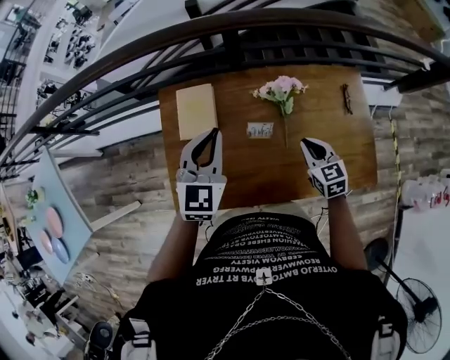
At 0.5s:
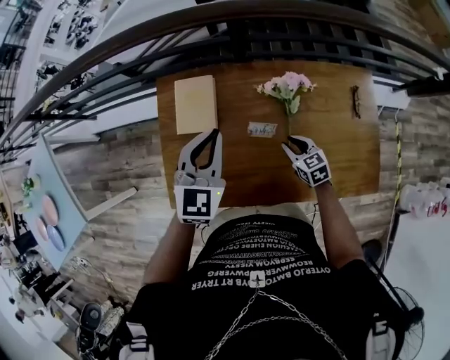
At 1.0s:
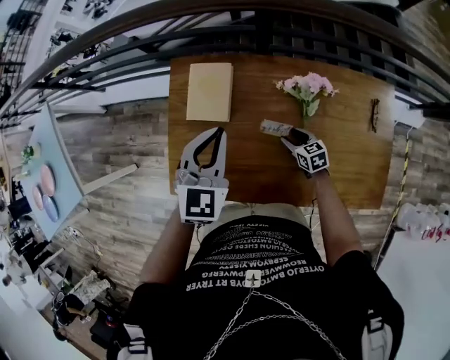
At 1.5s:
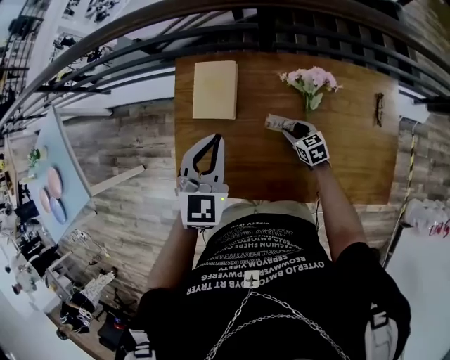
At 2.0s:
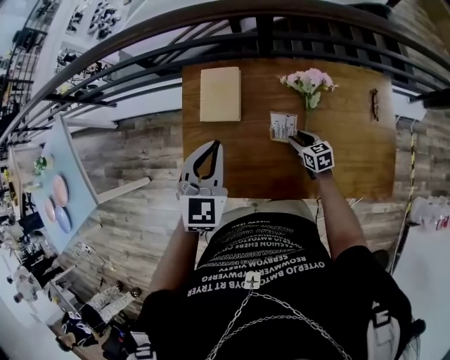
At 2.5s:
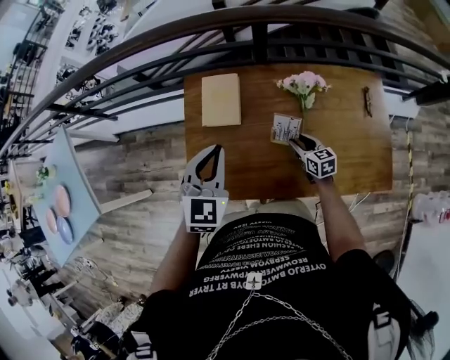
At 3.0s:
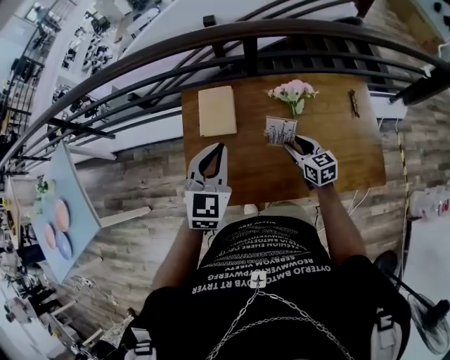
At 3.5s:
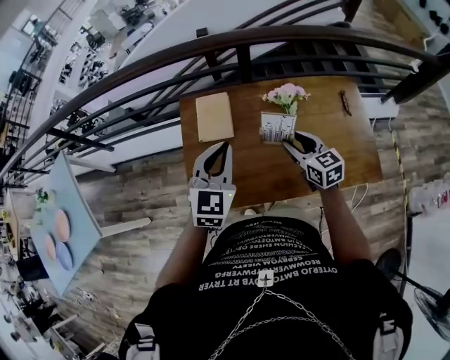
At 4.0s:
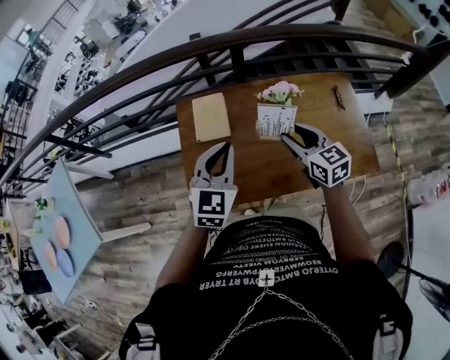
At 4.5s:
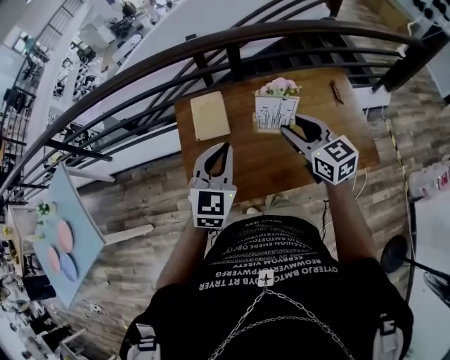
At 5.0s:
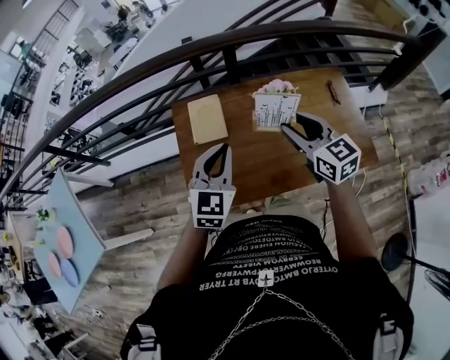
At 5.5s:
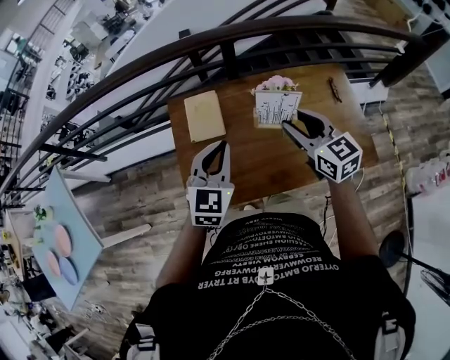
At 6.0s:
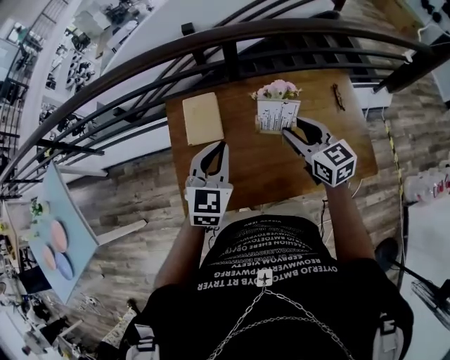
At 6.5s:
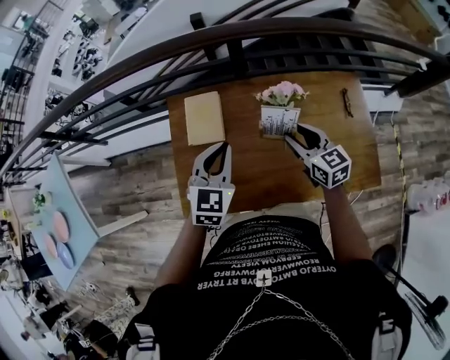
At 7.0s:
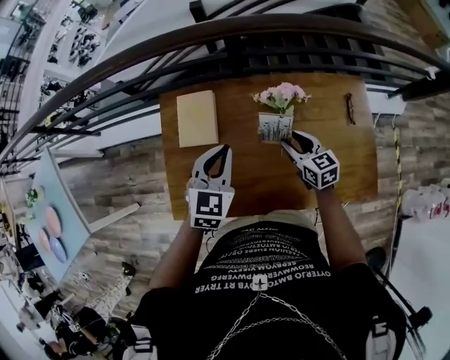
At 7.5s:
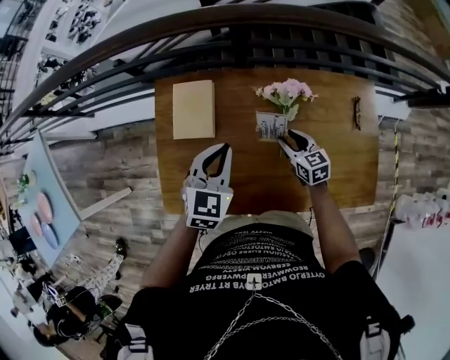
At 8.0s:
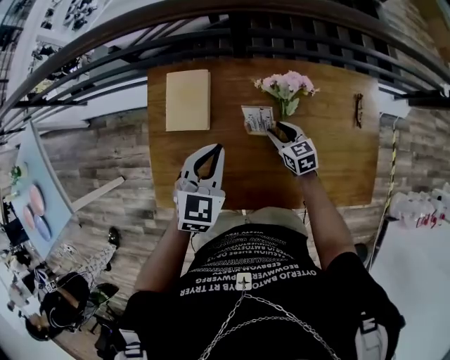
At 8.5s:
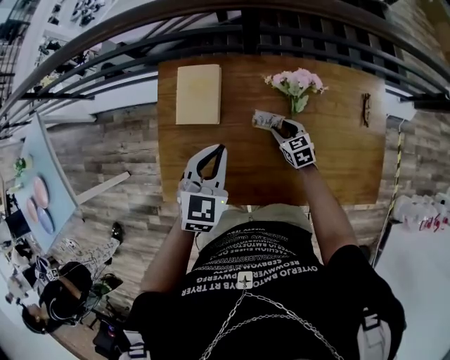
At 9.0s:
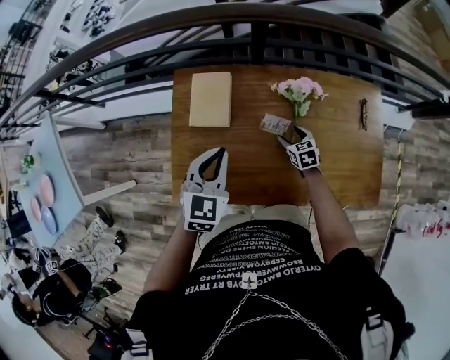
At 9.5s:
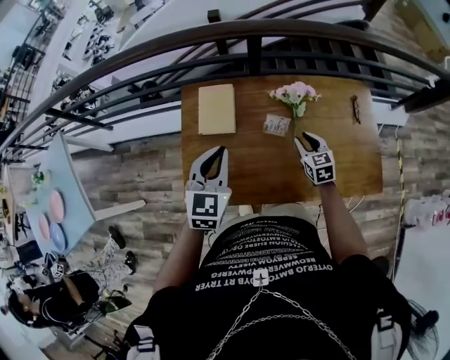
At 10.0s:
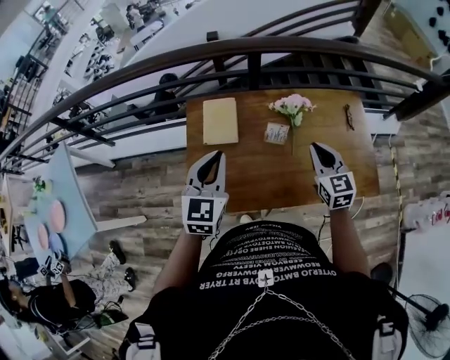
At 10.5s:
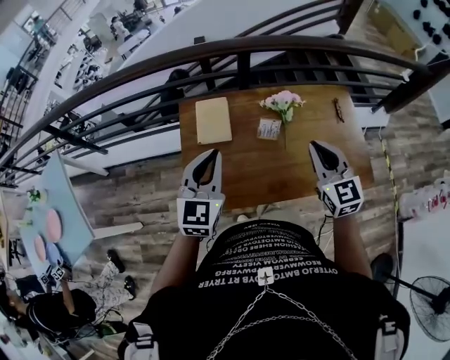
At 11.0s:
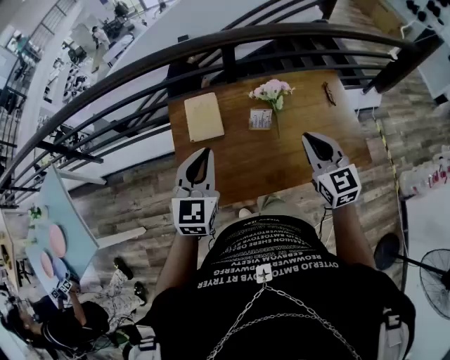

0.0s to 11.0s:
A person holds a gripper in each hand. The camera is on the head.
0.0s to 2.0s: The right gripper travels downward by roughly 20 cm, rotates roughly 20 degrees, and opens up, while the left gripper is displaced to the left by some 5 cm.
2.0s to 3.5s: The left gripper shifts roughly 10 cm upward and backward. The right gripper goes approximately 25 cm upward, and rotates some 20 degrees.
3.5s to 5.5s: The right gripper travels upward by some 10 cm.
5.5s to 7.5s: The left gripper is displaced forward, downward and to the right by about 15 cm. The right gripper is displaced downward by approximately 30 cm, and rotates about 20 degrees.
7.5s to 9.0s: The left gripper goes some 5 cm to the left. The right gripper moves downward, approximately 10 cm.
9.0s to 11.0s: The right gripper is displaced upward and backward by roughly 40 cm, angles its fingers upward, by about 30 degrees, and closes its fingers. Meanwhile the left gripper shifts about 15 cm upward, backward and to the left.

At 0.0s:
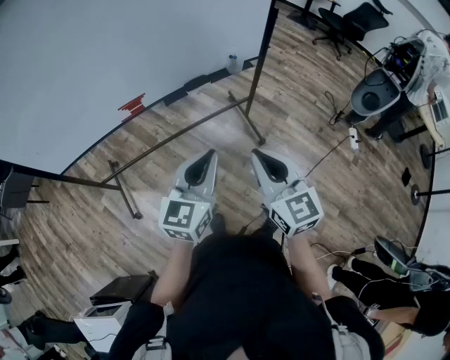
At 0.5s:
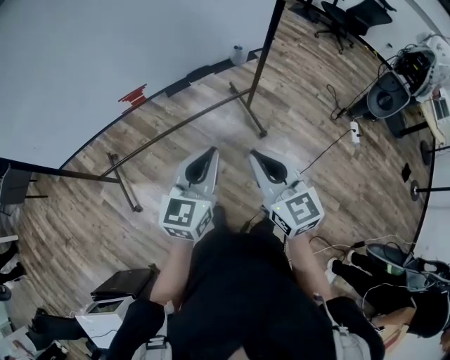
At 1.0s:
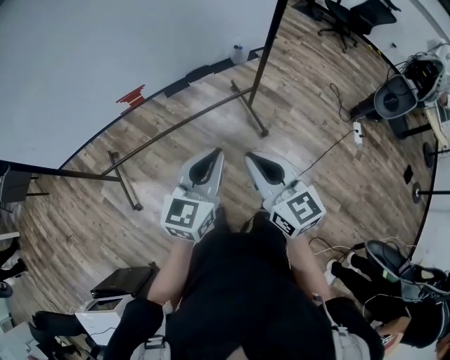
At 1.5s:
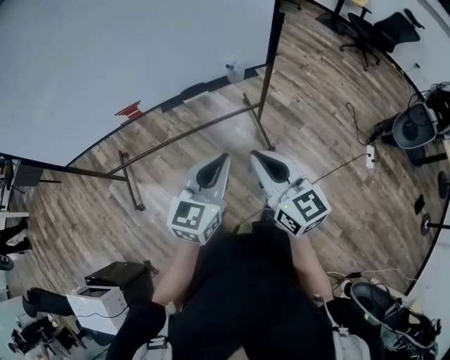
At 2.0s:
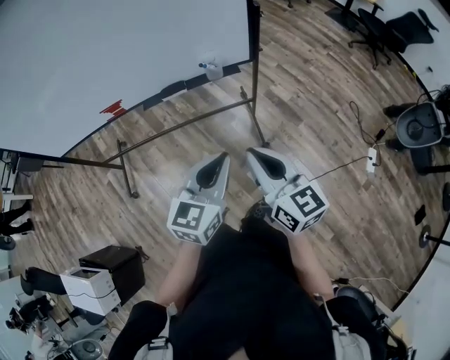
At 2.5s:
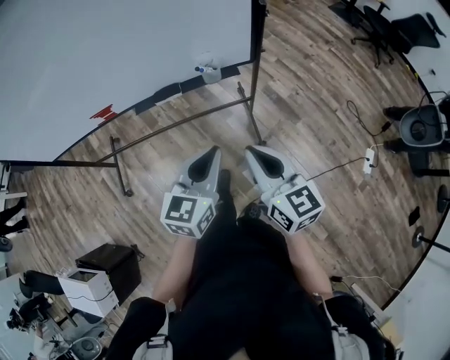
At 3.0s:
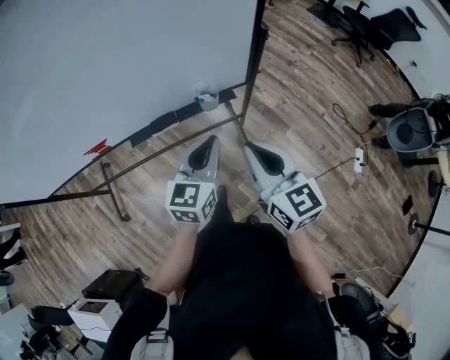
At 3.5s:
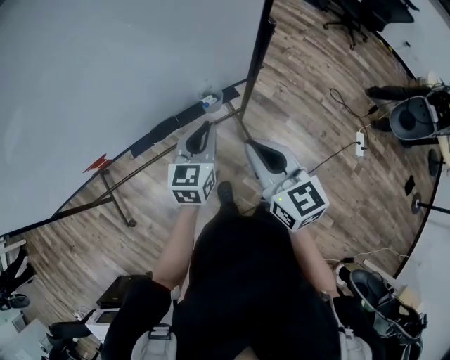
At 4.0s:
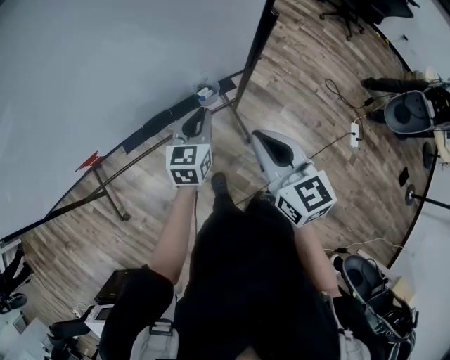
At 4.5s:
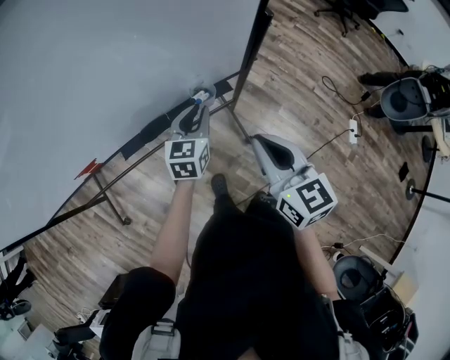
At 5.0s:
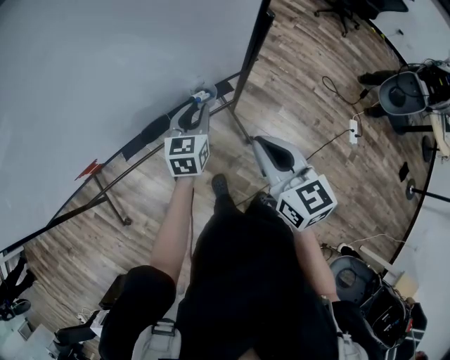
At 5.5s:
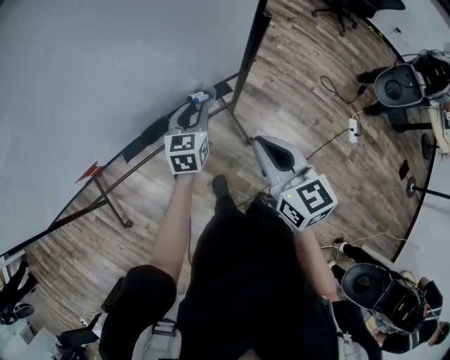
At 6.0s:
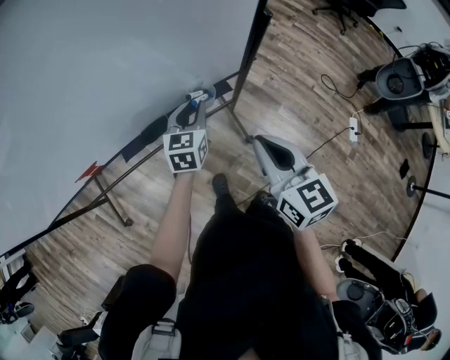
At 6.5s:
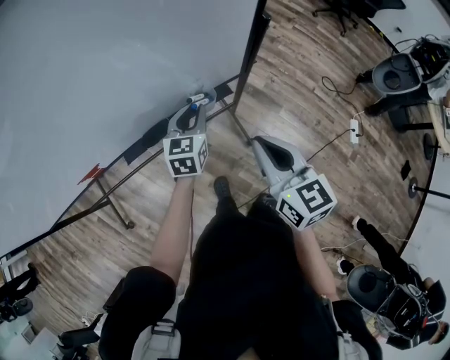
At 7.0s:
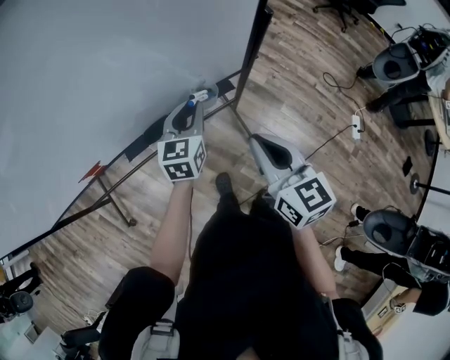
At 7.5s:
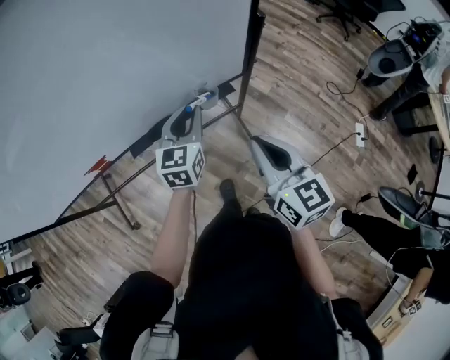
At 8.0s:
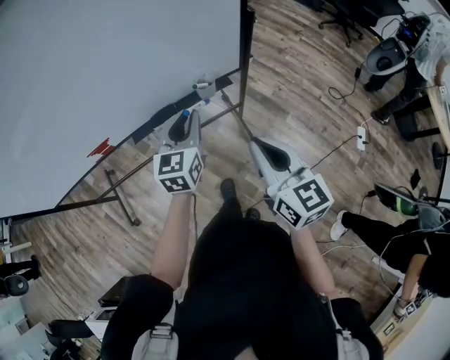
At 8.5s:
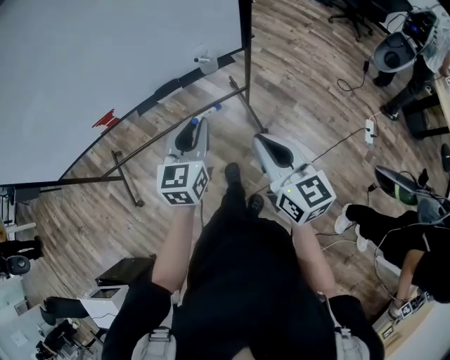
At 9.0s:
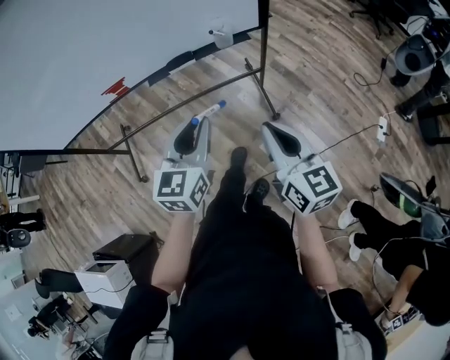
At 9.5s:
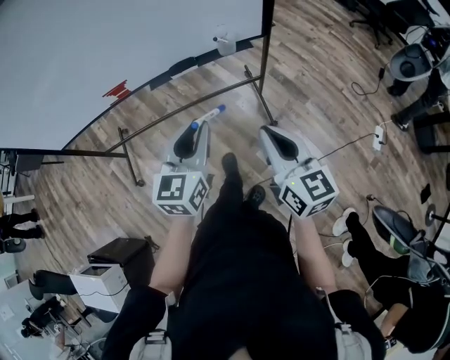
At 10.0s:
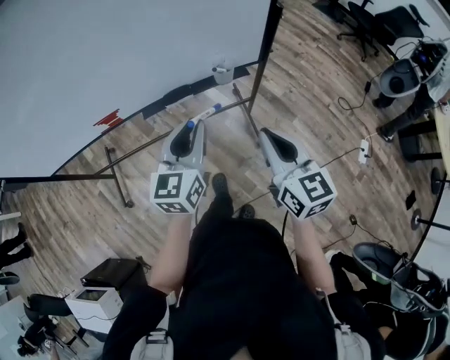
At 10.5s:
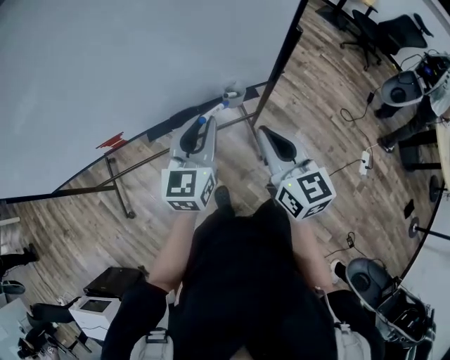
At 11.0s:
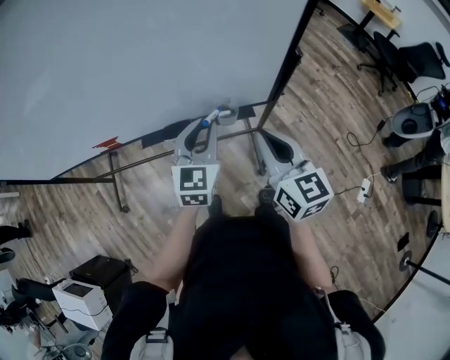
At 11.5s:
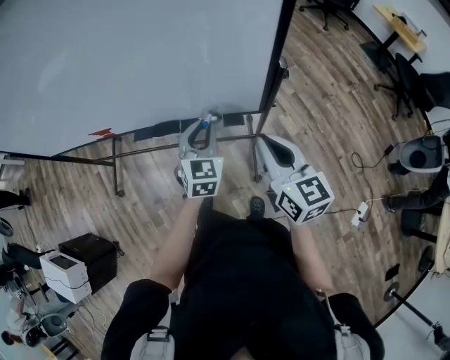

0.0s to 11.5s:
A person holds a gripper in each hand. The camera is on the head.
0.0s to 2.0s: The left gripper travels to the right by about 25 cm. The right gripper shifts about 25 cm to the right and forward, and swivels some 30 degrees.
2.0s to 4.0s: The left gripper shifts about 35 cm forward and downward. Meanwhile the right gripper moves forward, some 25 cm.
4.0s to 6.0s: The left gripper changes place by roughly 5 cm.
6.0s to 7.5s: The left gripper shifts approximately 10 cm upward and backward.
7.5s to 9.5s: The left gripper shifts approximately 30 cm backward; the right gripper shifts about 20 cm backward.
9.5s to 11.5s: The two grippers go about 30 cm forward and to the right. The left gripper changes its angle by some 30 degrees.

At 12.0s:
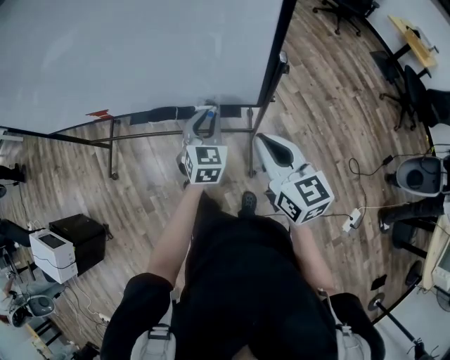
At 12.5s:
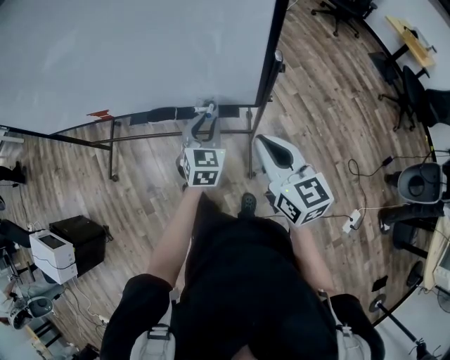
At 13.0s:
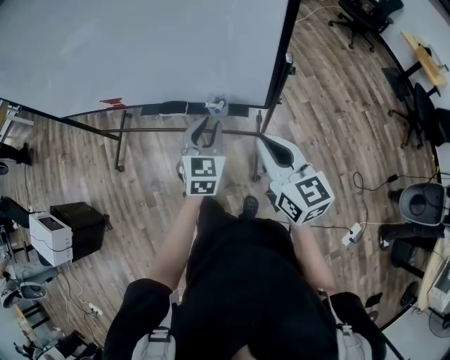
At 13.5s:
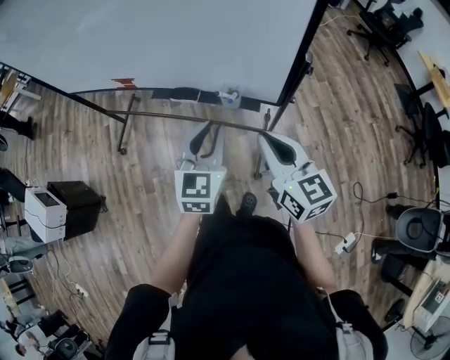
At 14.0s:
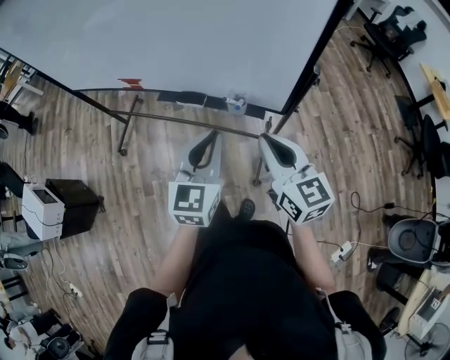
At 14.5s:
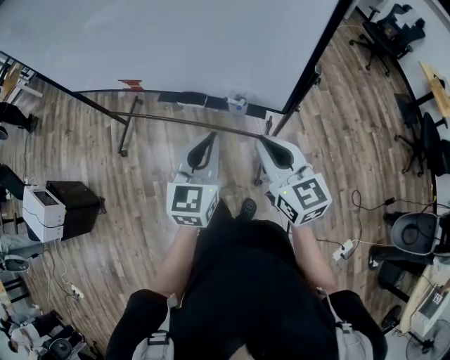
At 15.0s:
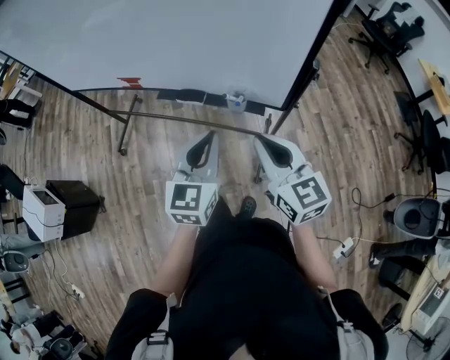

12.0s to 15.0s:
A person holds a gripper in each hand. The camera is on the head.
12.0s to 13.5s: The left gripper moves backward and upward, roughly 15 cm.
13.5s to 15.0s: The grippers stay close to where they were, moving slightly.

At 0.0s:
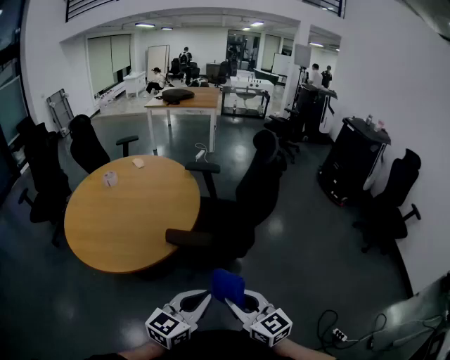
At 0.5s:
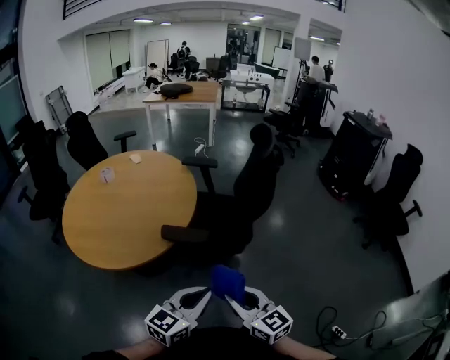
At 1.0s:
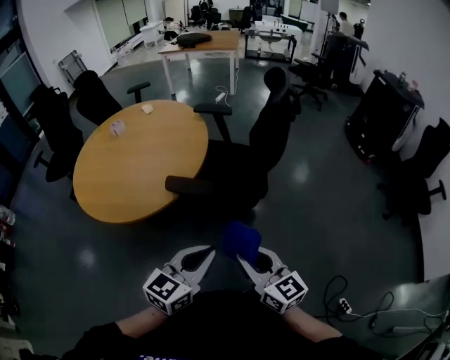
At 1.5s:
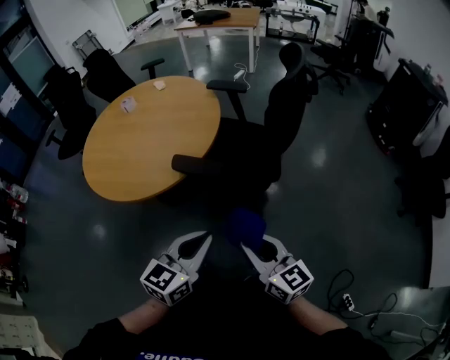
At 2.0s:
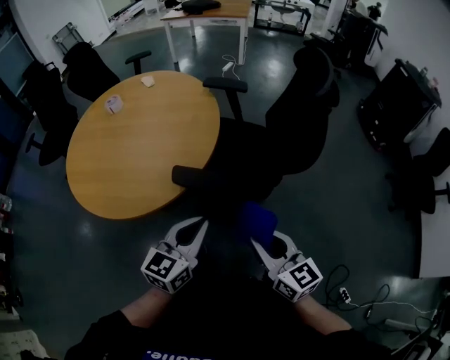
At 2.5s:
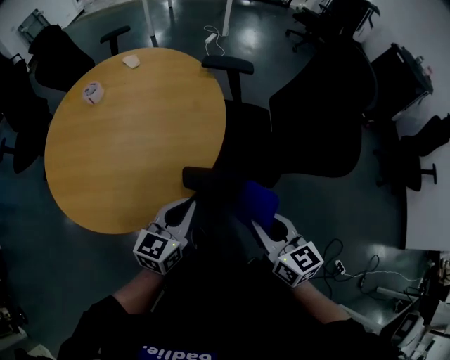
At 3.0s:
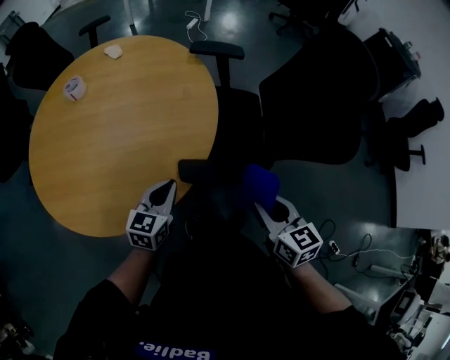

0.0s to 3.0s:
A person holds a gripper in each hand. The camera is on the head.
0.0s to 1.5s: Both grippers move to the right, roughly 10 cm.
1.5s to 3.0s: The right gripper heads forward and to the left, covering approximately 25 cm, and rotates some 30 degrees, while the left gripper heads forward, to the left and downward, covering roughly 40 cm.
